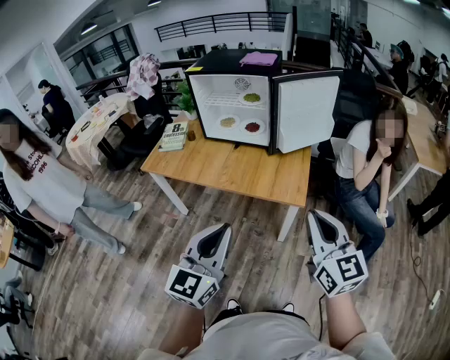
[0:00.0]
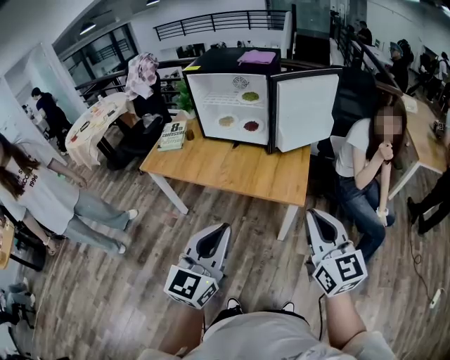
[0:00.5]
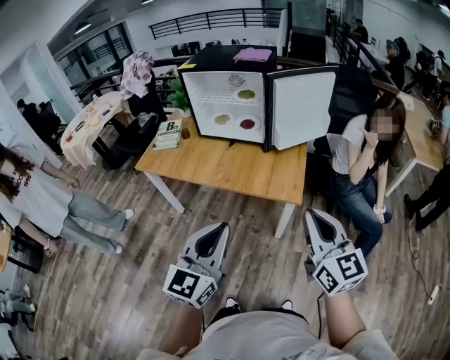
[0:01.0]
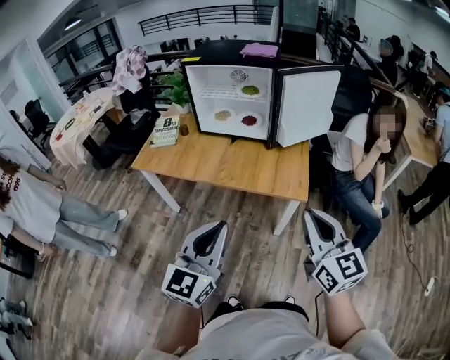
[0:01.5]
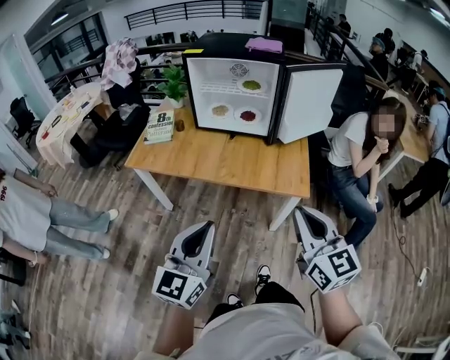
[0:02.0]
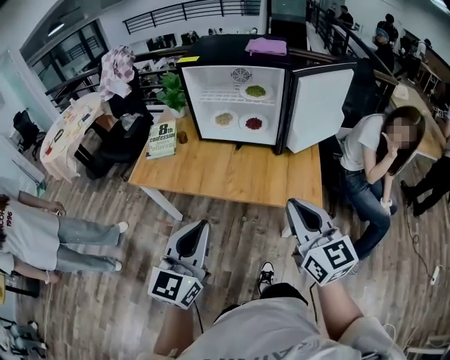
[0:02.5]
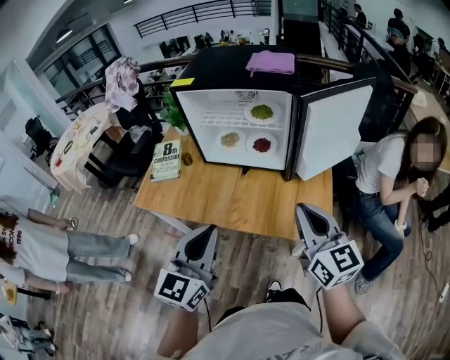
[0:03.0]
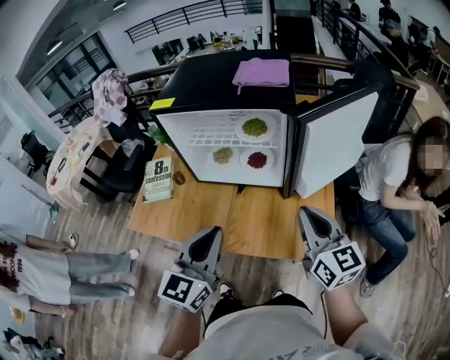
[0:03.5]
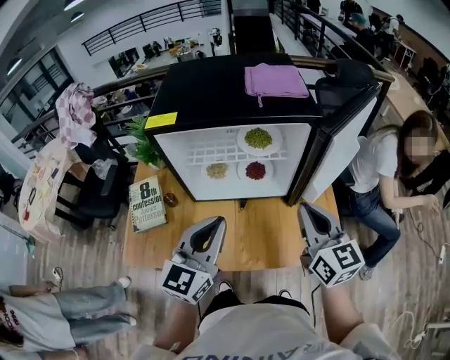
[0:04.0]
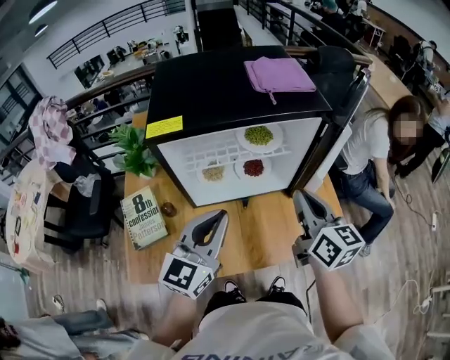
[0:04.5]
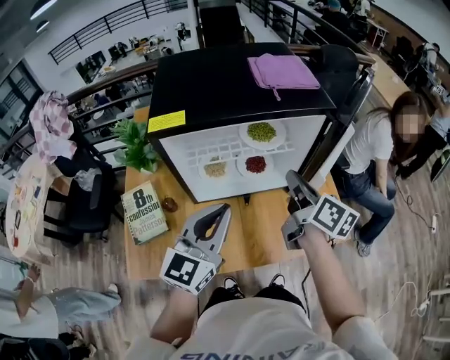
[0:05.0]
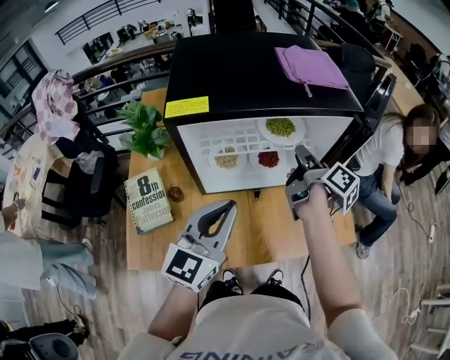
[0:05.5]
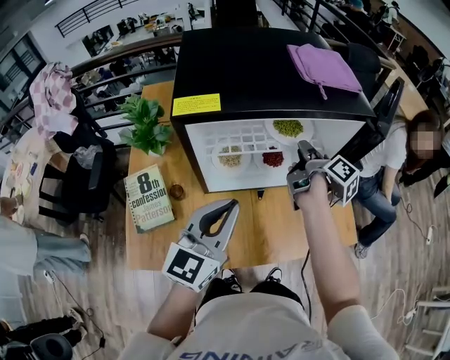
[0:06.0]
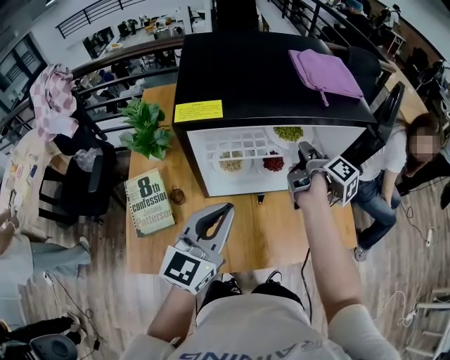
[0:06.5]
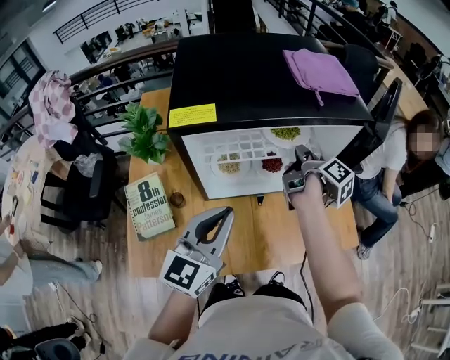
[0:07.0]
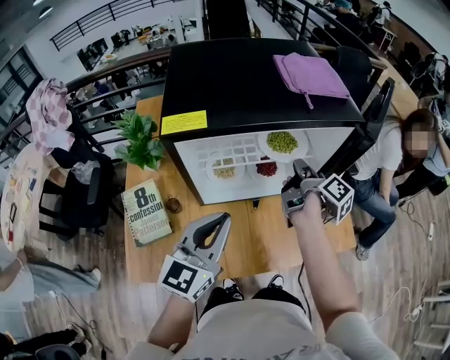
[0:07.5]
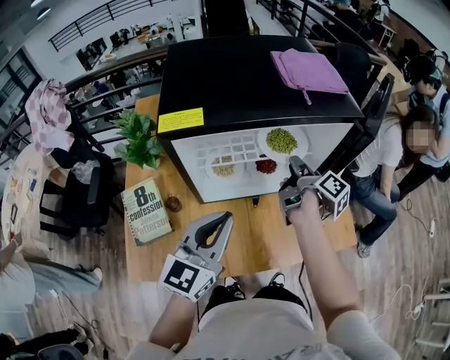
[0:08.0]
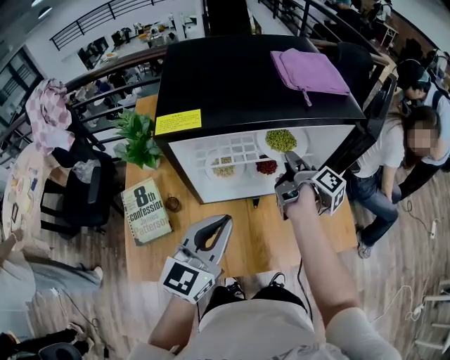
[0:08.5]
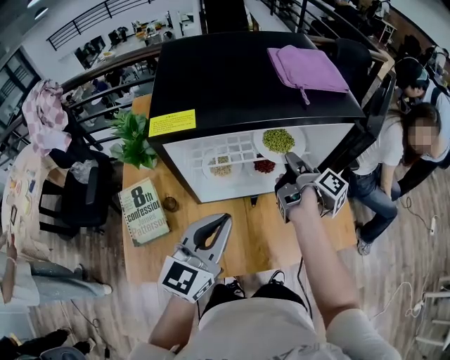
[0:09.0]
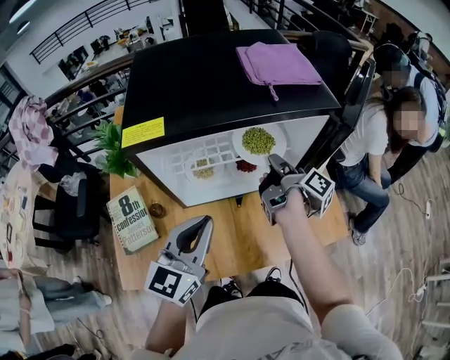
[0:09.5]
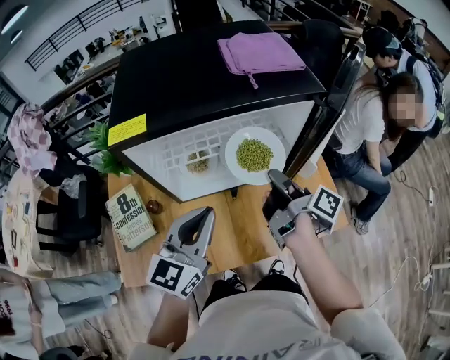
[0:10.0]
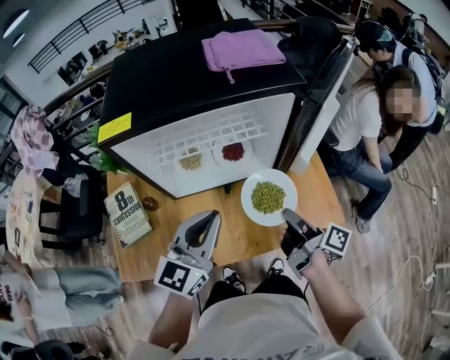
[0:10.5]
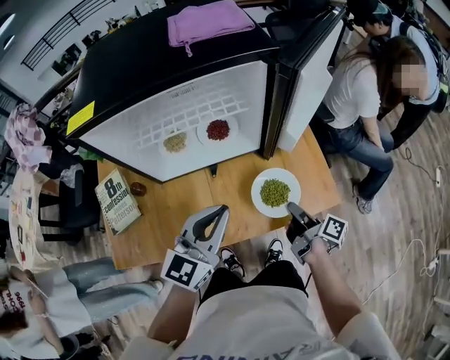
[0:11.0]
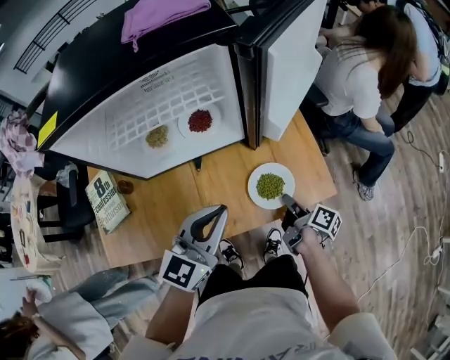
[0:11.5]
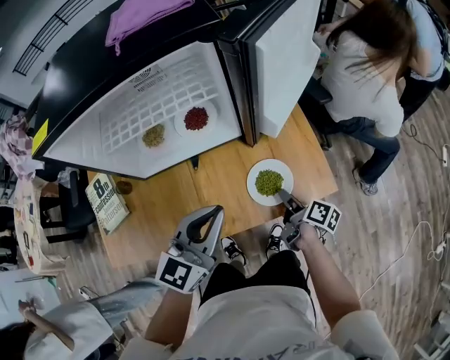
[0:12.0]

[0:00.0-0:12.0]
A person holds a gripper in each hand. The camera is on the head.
0:00.0 to 0:02.0: Both grippers travel together to the left, some 15 cm.
0:02.0 to 0:04.0: The two grippers go some 40 cm forward.
0:04.0 to 0:06.0: The right gripper is displaced forward, to the left and downward by about 20 cm, and rolls clockwise, seen from behind, by approximately 70 degrees. Meanwhile the left gripper heads to the left, covering roughly 10 cm.
0:06.0 to 0:08.0: The grippers move only a little.
0:08.0 to 0:10.0: The right gripper heads backward, covering some 5 cm.
0:10.0 to 0:12.0: The left gripper shifts some 20 cm to the right and downward, while the right gripper moves downward, to the right and backward, about 30 cm, and changes its angle by about 20 degrees.

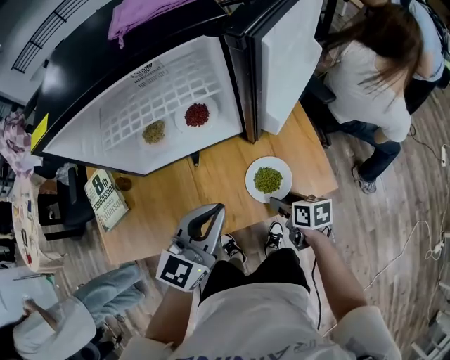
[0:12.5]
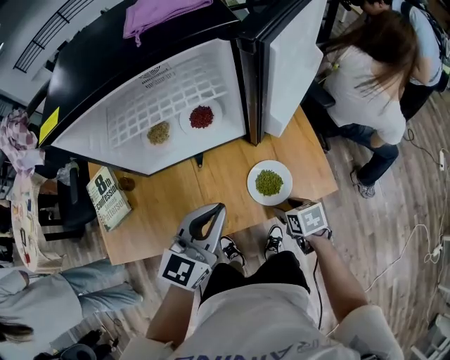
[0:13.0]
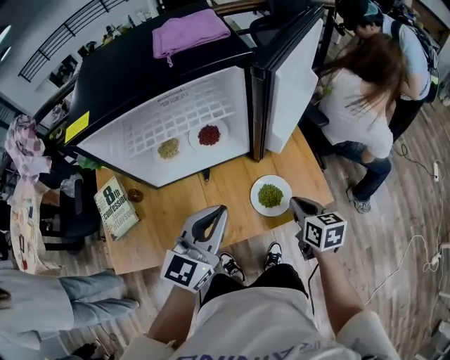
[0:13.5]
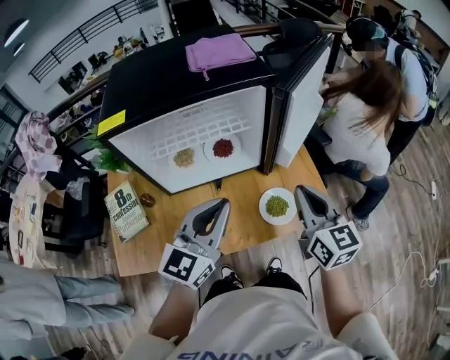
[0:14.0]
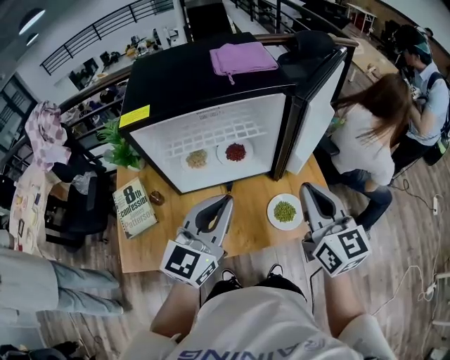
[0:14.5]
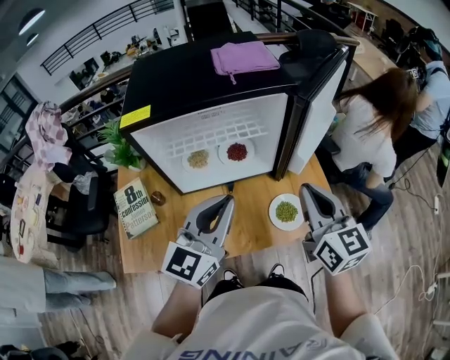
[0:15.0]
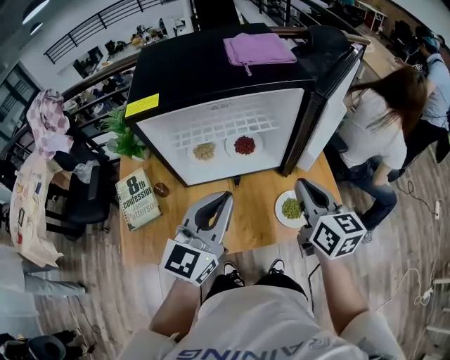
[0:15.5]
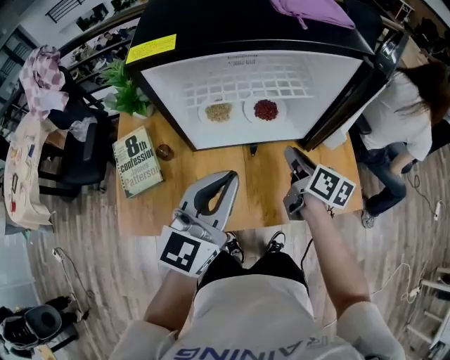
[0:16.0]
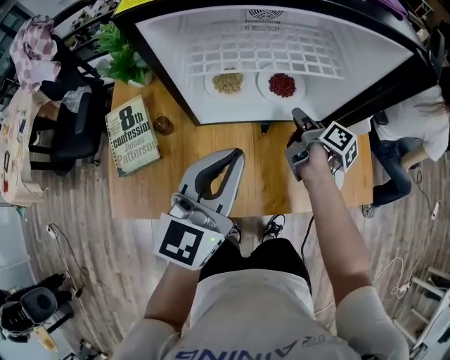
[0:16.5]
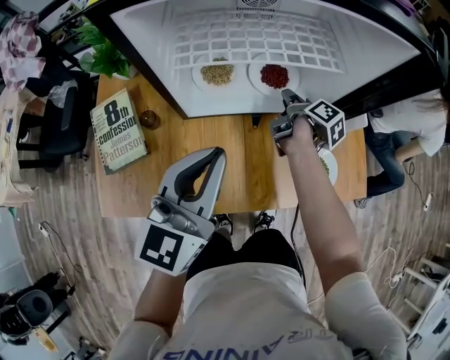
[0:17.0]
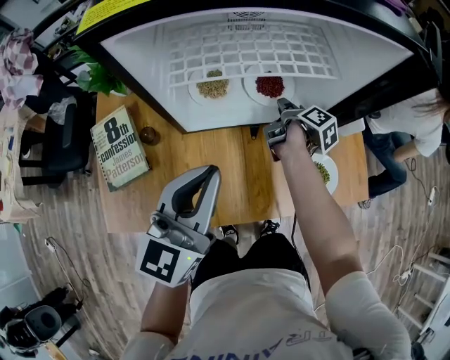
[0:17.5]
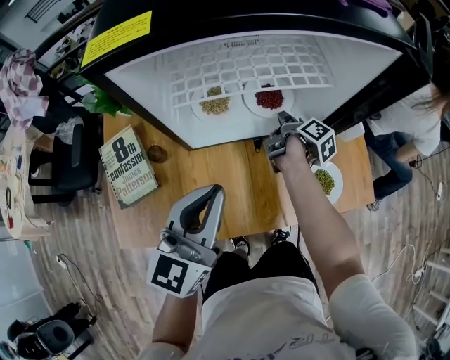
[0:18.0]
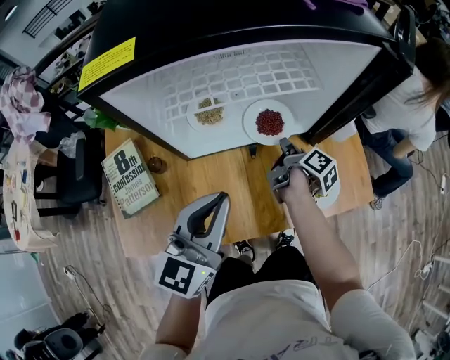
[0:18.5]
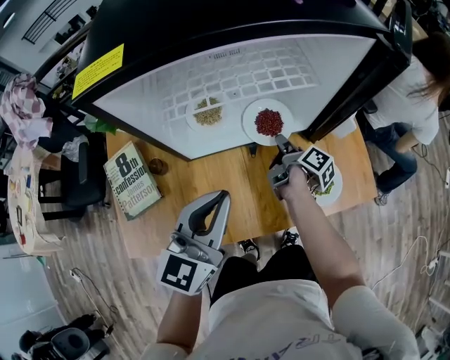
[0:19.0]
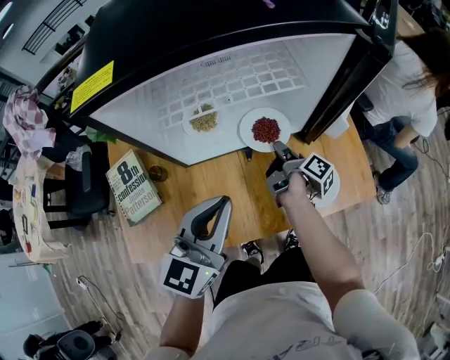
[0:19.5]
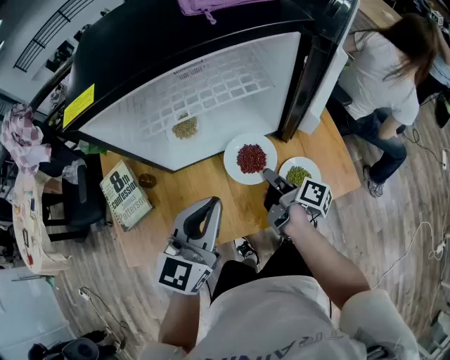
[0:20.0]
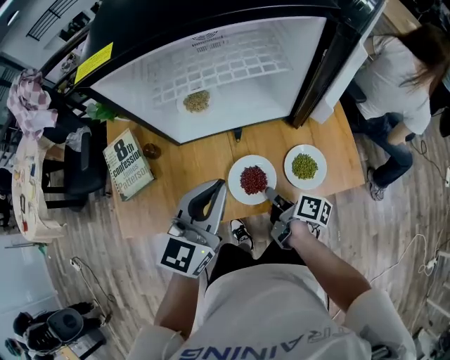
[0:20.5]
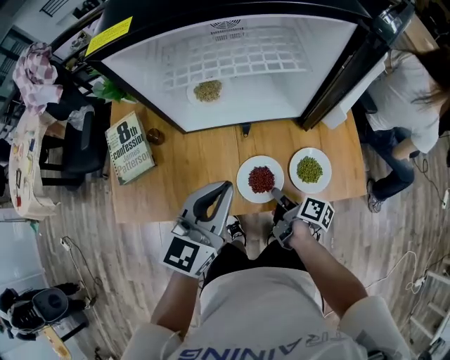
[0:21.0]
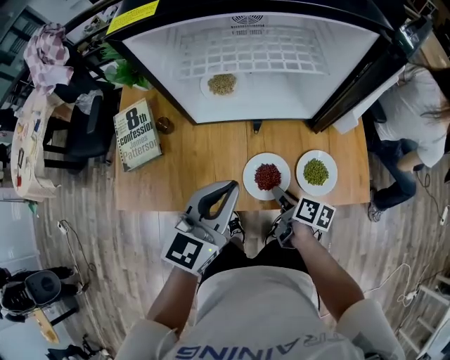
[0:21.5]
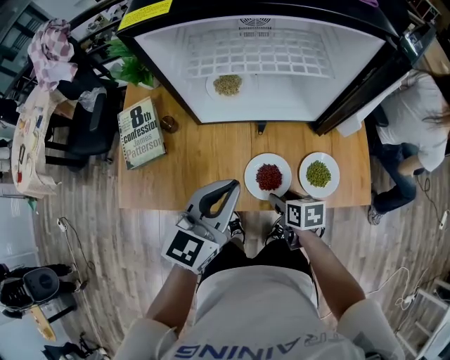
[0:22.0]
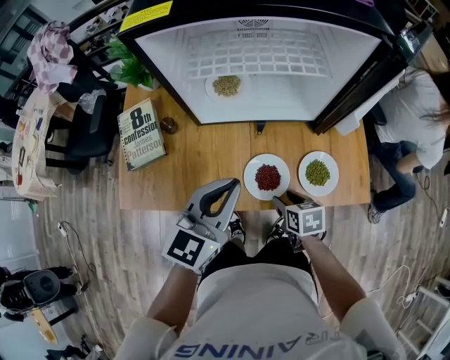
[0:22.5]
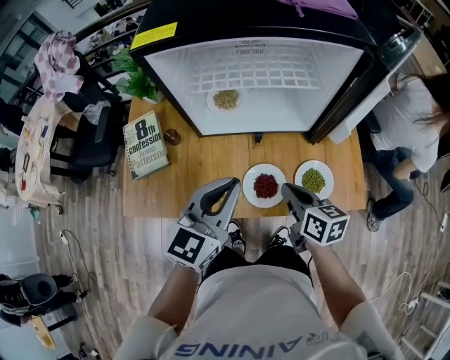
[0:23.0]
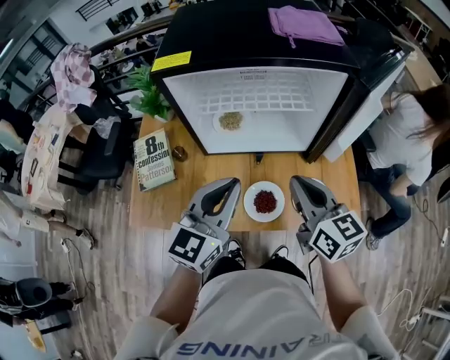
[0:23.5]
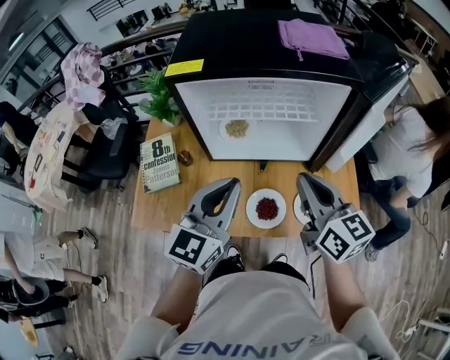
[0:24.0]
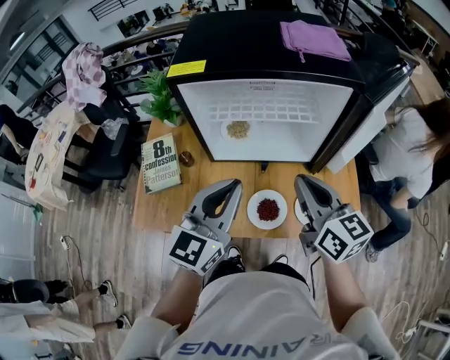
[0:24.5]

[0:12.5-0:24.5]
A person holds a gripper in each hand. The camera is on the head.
0:12.5 to 0:14.5: The left gripper is displaced upward and to the left by roughly 15 cm; the right gripper moves upward, roughly 35 cm, points its fingers some 40 degrees further upward, and closes its fingers.
0:14.5 to 0:16.5: The left gripper heads to the left and downward, covering approximately 10 cm, while the right gripper shifts about 35 cm downward, forward and to the left, rolls clockwise, seen from behind, by roughly 70 degrees, and opens its fingers.
0:16.5 to 0:18.5: The right gripper ends up about 5 cm from where it was.
0:18.5 to 0:20.5: The left gripper shifts some 5 cm to the right, while the right gripper moves backward, some 20 cm, and changes its angle by about 30 degrees.
0:20.5 to 0:22.5: The right gripper rotates around the line of its fingers by roughly 50 degrees, counterclockwise from behind, and opens up.
0:22.5 to 0:24.5: The right gripper goes approximately 30 cm upward, angles its fingers upward, by about 50 degrees, and closes its fingers; the left gripper moves upward, about 10 cm.

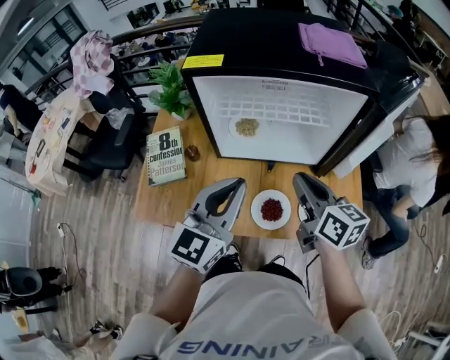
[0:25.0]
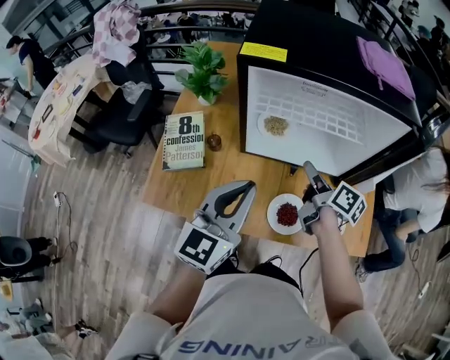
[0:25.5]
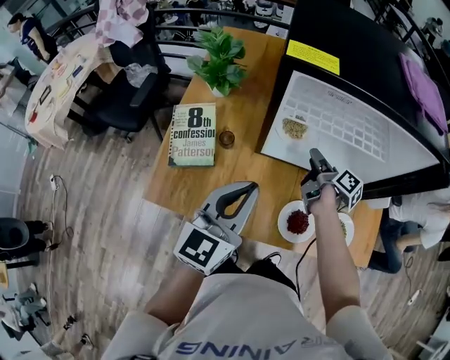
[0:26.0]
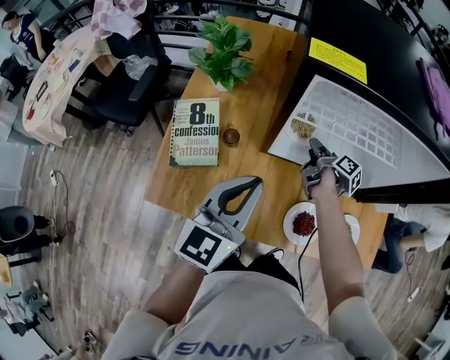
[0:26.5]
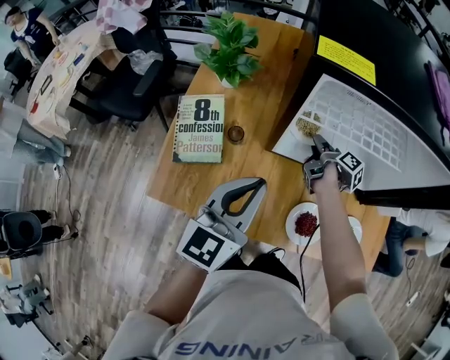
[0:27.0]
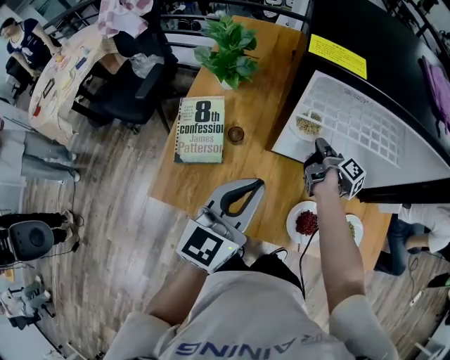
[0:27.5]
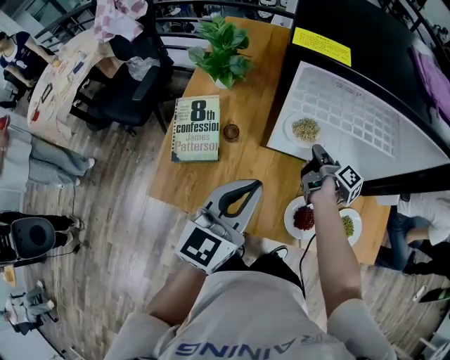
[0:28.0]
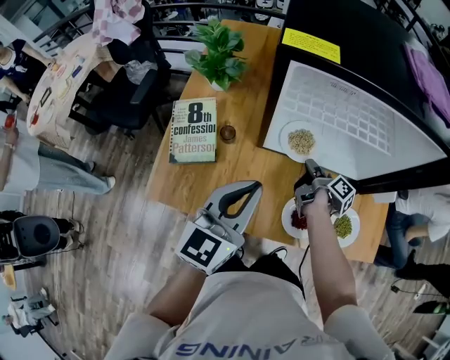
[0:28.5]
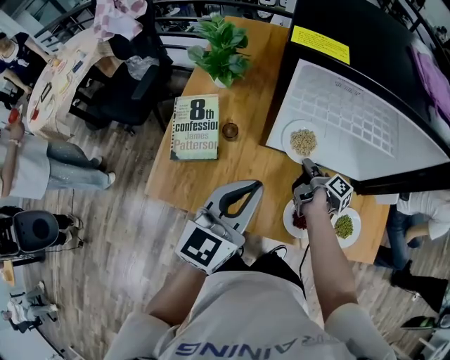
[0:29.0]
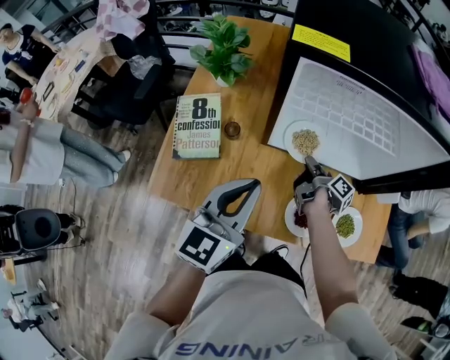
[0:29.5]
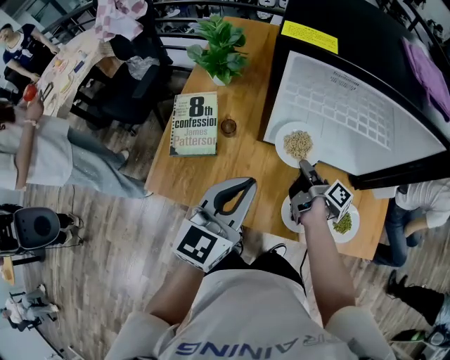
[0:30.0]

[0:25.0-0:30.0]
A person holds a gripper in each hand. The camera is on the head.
0:25.0 to 0:27.5: The left gripper goes roughly 15 cm to the left and downward. Meanwhile the right gripper goes roughly 30 cm forward and downward, twists roughly 60 degrees clockwise, seen from behind, and opens, then closes once more.
0:27.5 to 0:30.0: The right gripper heads backward, covering some 10 cm.
